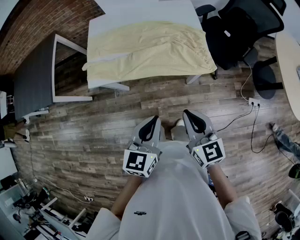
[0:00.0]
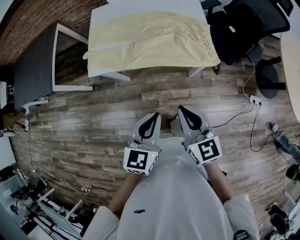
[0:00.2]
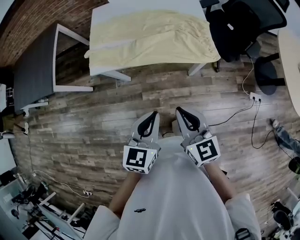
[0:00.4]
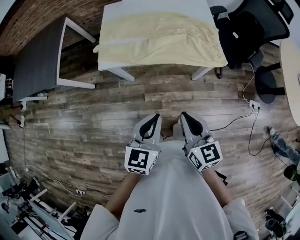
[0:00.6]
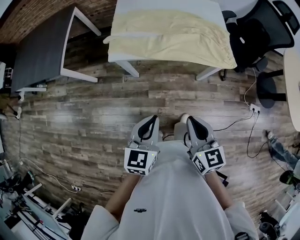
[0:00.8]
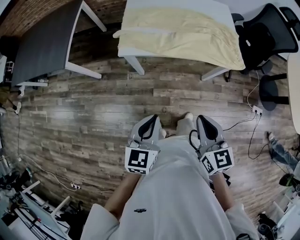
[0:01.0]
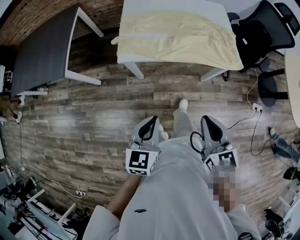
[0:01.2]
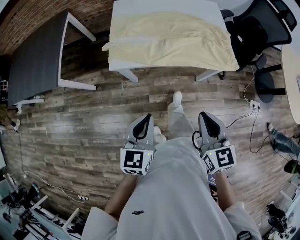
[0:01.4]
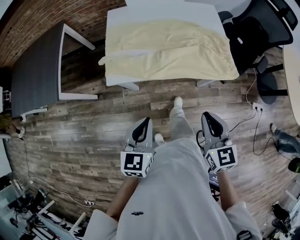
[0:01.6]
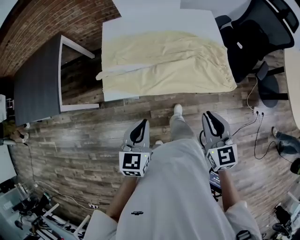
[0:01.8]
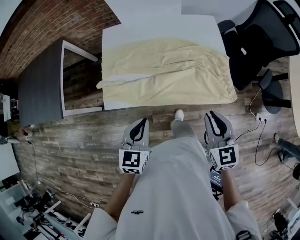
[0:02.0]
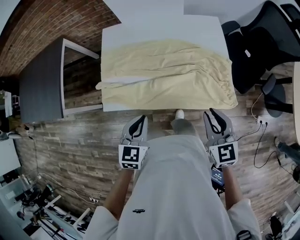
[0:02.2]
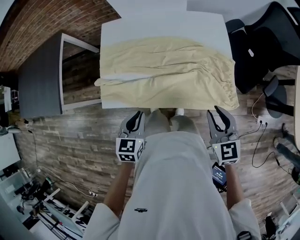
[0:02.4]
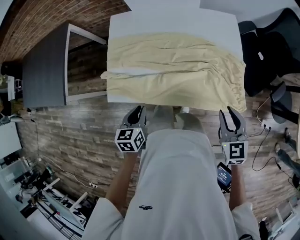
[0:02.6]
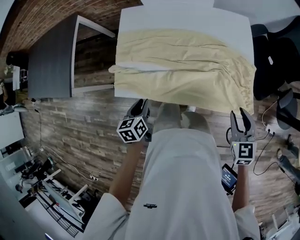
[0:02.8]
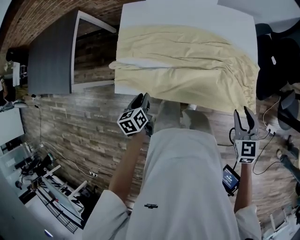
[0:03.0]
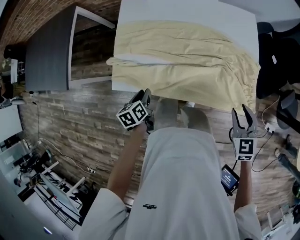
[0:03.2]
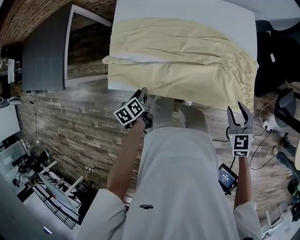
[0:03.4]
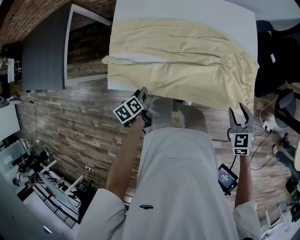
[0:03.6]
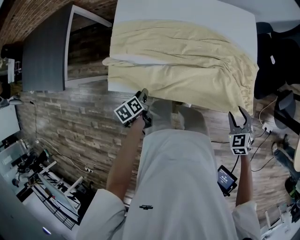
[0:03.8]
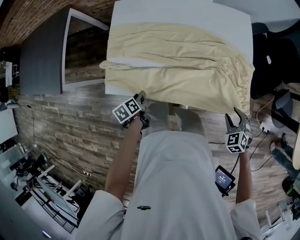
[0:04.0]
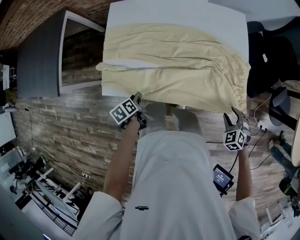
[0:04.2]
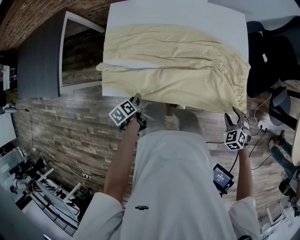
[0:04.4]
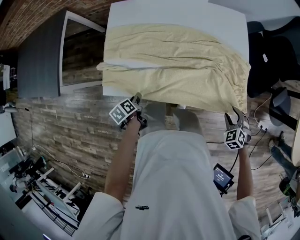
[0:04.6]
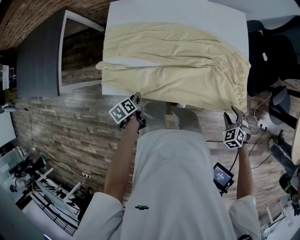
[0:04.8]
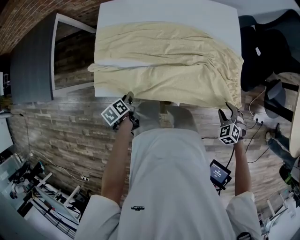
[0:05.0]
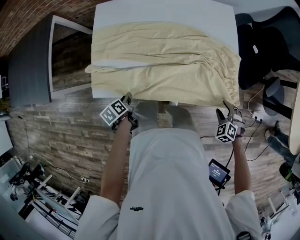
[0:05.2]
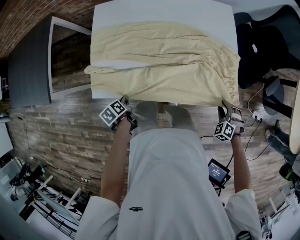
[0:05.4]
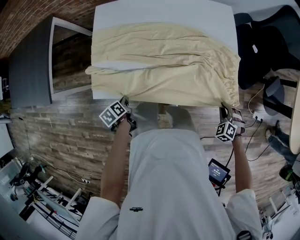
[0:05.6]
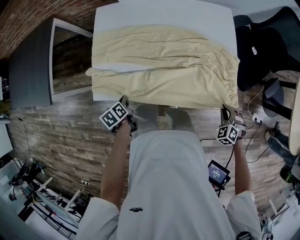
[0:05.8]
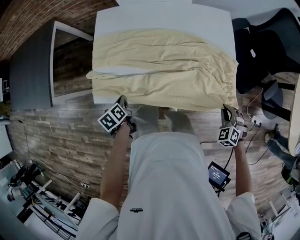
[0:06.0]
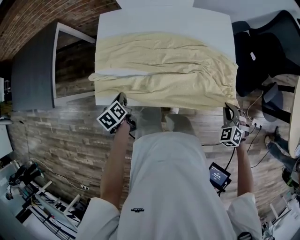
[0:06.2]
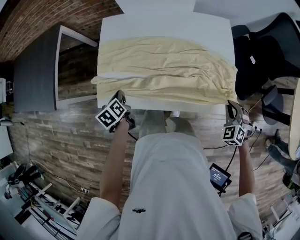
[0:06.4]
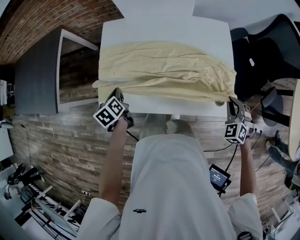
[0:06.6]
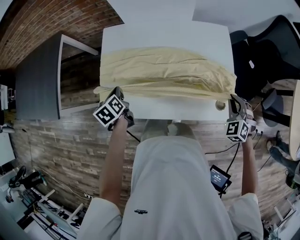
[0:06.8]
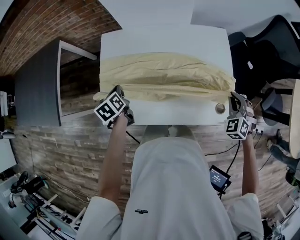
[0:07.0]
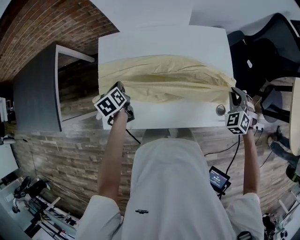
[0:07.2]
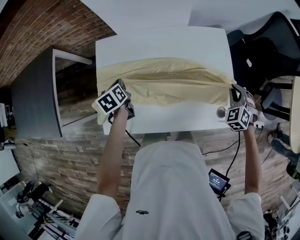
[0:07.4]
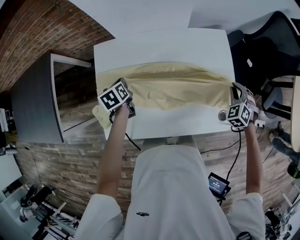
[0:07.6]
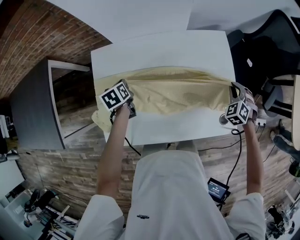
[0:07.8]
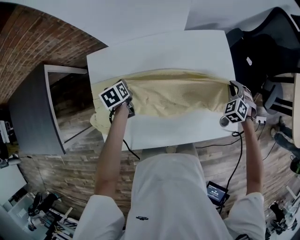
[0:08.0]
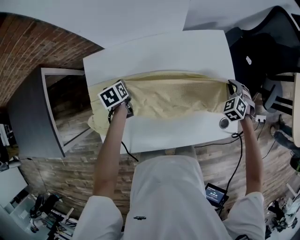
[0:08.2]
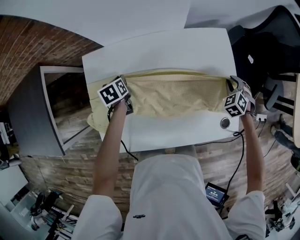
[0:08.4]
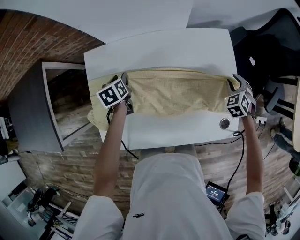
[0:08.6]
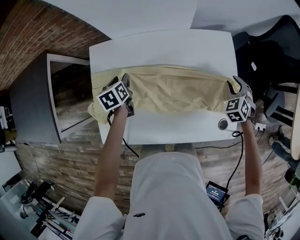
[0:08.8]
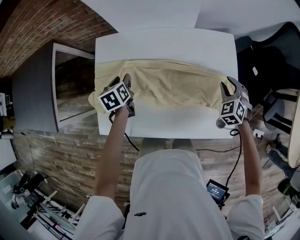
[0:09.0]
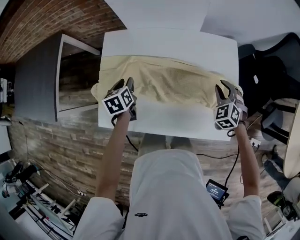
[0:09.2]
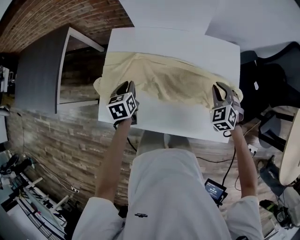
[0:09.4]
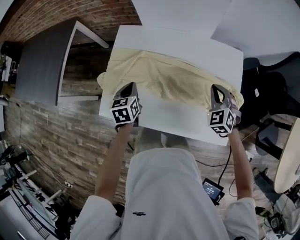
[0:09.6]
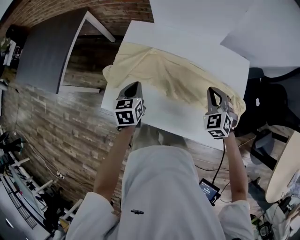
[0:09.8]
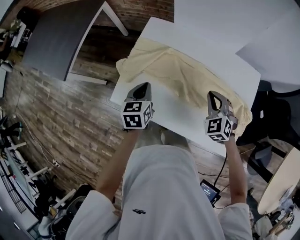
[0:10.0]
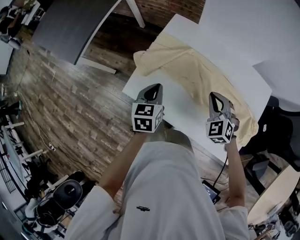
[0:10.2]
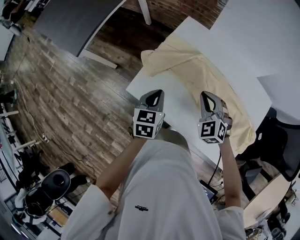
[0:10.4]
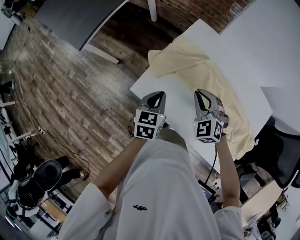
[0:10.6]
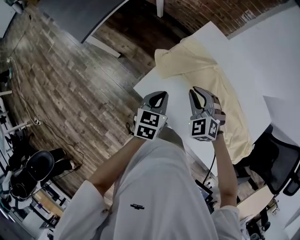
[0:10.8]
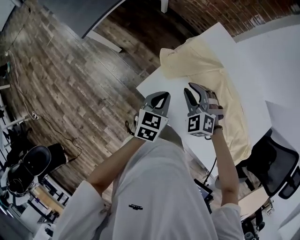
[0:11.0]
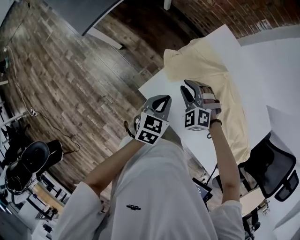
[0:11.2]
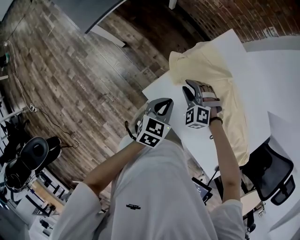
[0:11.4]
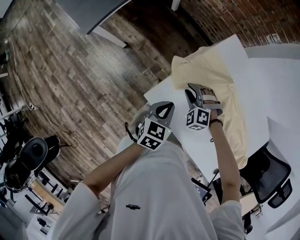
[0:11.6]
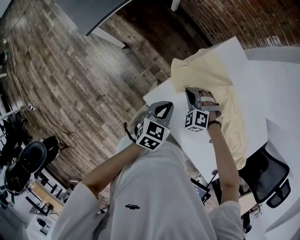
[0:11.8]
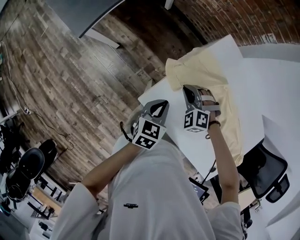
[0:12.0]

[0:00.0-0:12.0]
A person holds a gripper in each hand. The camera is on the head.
0:00.0 to 0:01.6: The right gripper is displaced to the left by roughly 10 cm; the left gripper moves to the left, roughly 20 cm.
0:01.6 to 0:03.0: The left gripper travels forward and downward by about 25 cm, swivels some 40 degrees, and opens its fingers, while the right gripper is displaced forward, to the right and downward by roughly 30 cm, and opens its fingers.
0:03.0 to 0:04.4: The left gripper is displaced downward by about 10 cm, and changes its angle by roughly 30 degrees. The right gripper travels downward by roughly 15 cm, and turns by approximately 40 degrees.
0:04.4 to 0:06.0: The left gripper changes place by some 5 cm, and closes up, while the right gripper closes.
0:06.0 to 0:07.6: The two grippers go about 25 cm forward.
0:07.6 to 0:09.0: The right gripper reaches about 10 cm downward, then returns, and opens up. Meanwhile the left gripper moves approximately 10 cm forward and comes back, and opens.
0:09.0 to 0:10.4: The right gripper ends up about 40 cm from where it was, turns by about 40 degrees, and closes its fingers; the left gripper shifts by about 20 cm, and closes its fingers.
0:10.4 to 0:12.0: The left gripper goes some 10 cm to the left, downward and forward, while the right gripper travels to the left, downward and forward by about 25 cm, turns by about 40 degrees, and opens, then closes again.

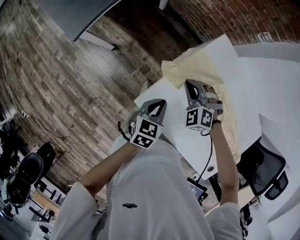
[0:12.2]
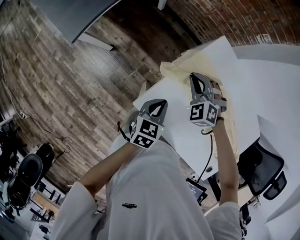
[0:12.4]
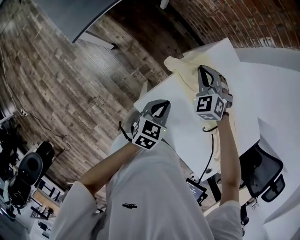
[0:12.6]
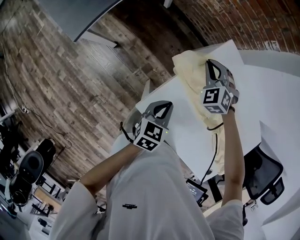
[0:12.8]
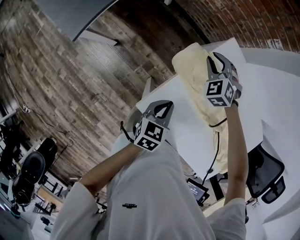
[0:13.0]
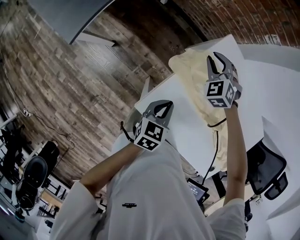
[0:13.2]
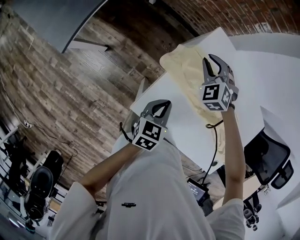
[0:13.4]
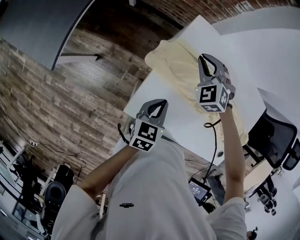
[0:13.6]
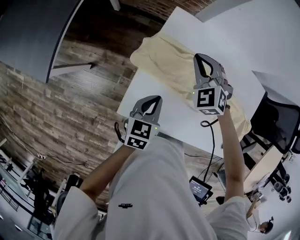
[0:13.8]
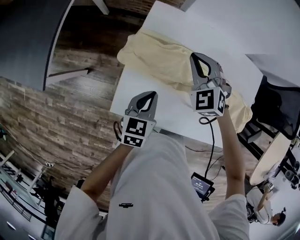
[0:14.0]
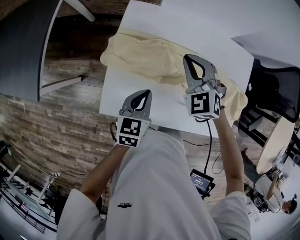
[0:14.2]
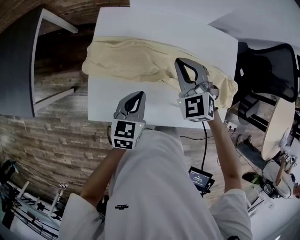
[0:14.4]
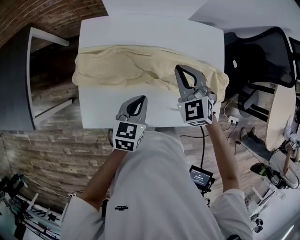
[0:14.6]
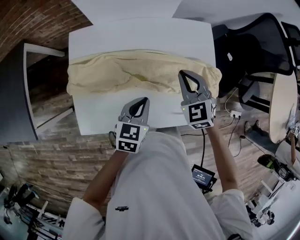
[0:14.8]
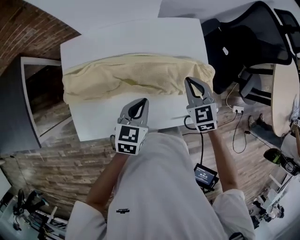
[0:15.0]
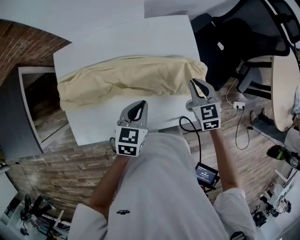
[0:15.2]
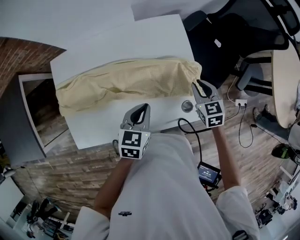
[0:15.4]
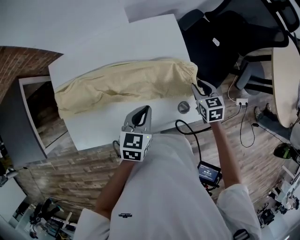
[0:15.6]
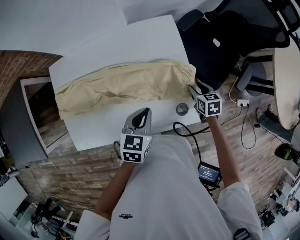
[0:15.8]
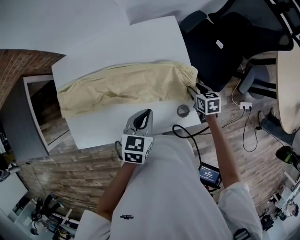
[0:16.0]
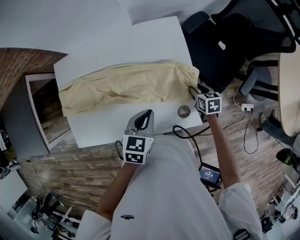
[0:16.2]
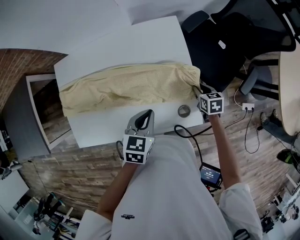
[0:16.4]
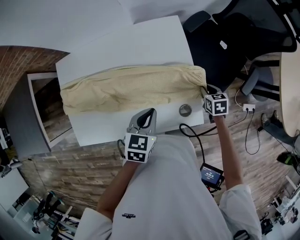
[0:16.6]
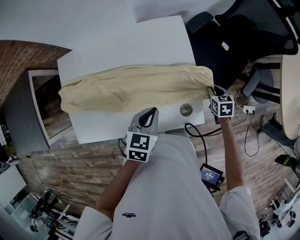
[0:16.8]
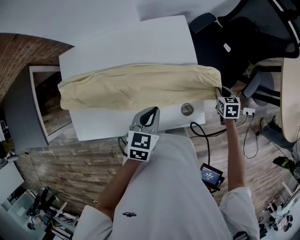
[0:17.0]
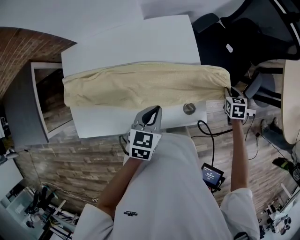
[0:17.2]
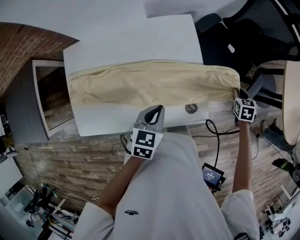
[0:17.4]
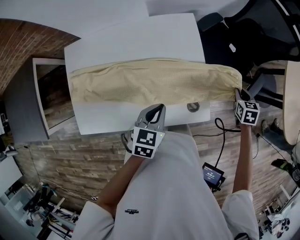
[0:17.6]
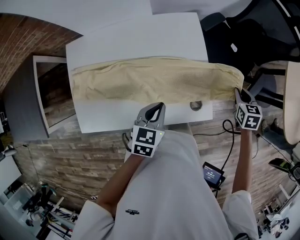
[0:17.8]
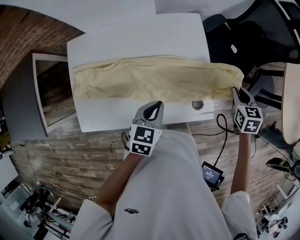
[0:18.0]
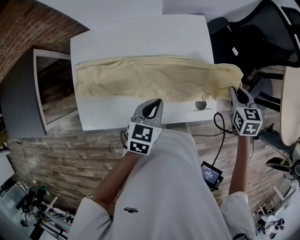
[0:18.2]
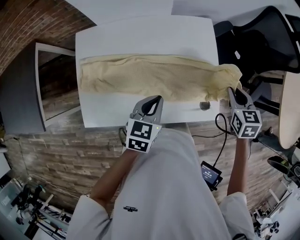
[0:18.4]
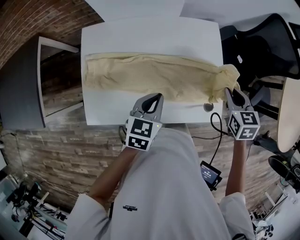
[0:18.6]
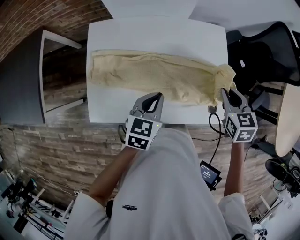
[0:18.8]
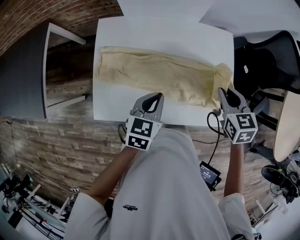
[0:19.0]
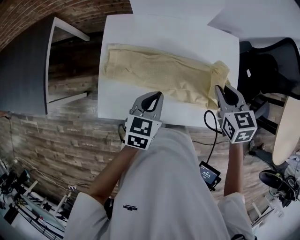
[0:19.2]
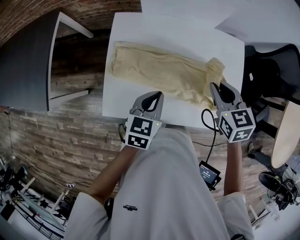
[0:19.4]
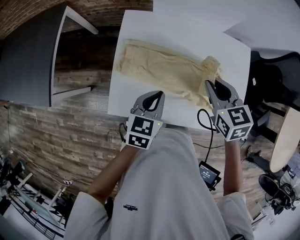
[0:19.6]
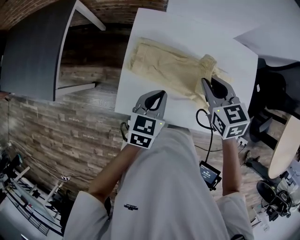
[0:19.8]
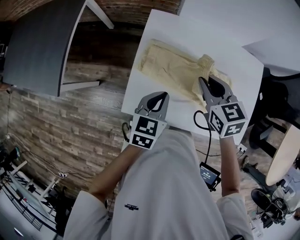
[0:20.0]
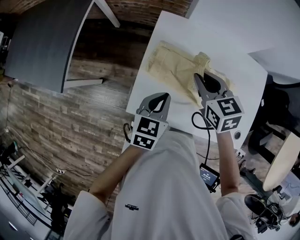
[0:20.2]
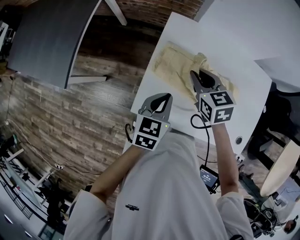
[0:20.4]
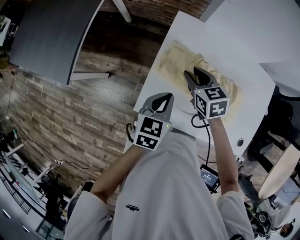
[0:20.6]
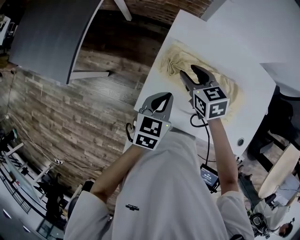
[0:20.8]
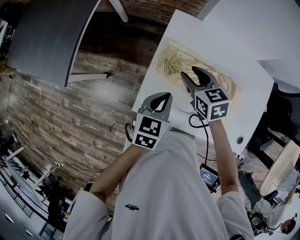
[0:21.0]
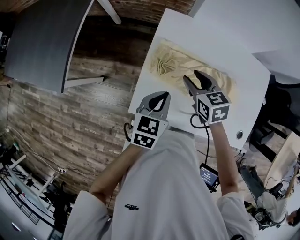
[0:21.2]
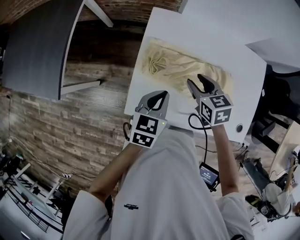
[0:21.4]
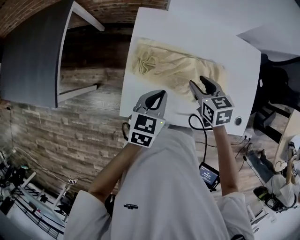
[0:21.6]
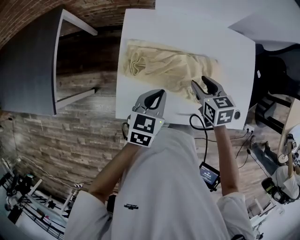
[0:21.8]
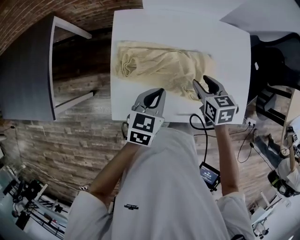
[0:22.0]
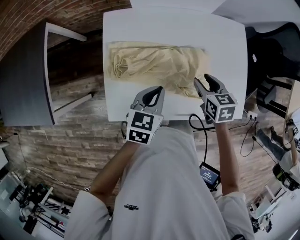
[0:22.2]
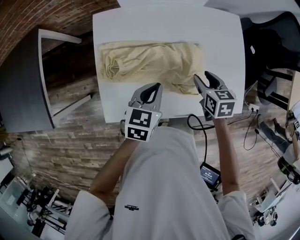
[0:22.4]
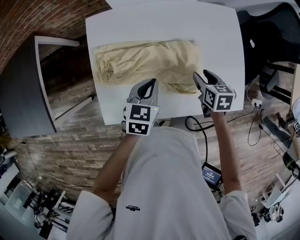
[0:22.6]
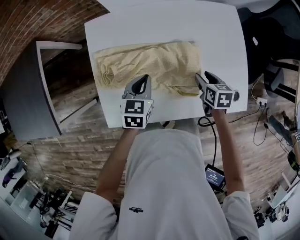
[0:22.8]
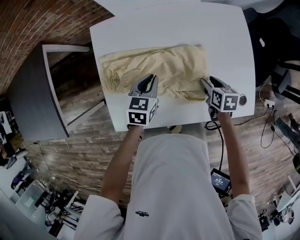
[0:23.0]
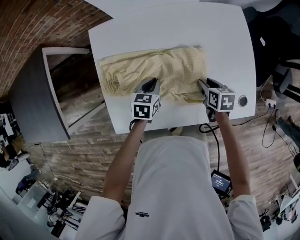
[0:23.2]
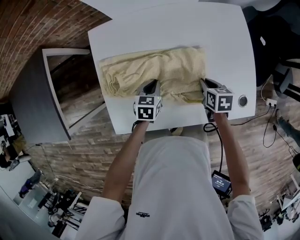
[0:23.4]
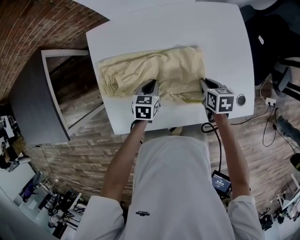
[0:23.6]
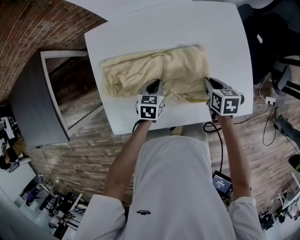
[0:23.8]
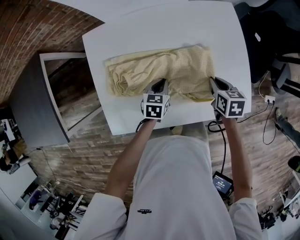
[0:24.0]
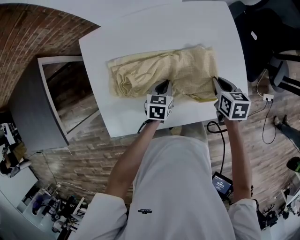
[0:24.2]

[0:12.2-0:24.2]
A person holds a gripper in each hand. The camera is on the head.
0:12.2 to 0:13.8: The right gripper is displaced to the right, forward and upward by about 20 cm, changes its angle by approximately 30 degrees, and opens, then closes once more; the left gripper heads to the right, covering roughly 5 cm.
0:13.8 to 0:15.2: The right gripper ends up roughly 60 cm from where it was, and rotates around the line of its fingers by roughly 50 degrees, clockwise from behind. The left gripper moves approximately 35 cm, and changes its angle by some 30 degrees.
0:15.2 to 0:16.6: The right gripper is displaced to the right and downward by about 20 cm, swivels about 30 degrees, and opens, then closes once more, while the left gripper moves to the right, about 10 cm.
0:16.6 to 0:18.2: The left gripper goes approximately 5 cm to the left, while the right gripper travels upward by about 20 cm.
0:18.2 to 0:19.8: The left gripper ends up approximately 30 cm from where it was. The right gripper moves roughly 50 cm, and changes its angle by approximately 30 degrees.
0:19.8 to 0:21.2: The left gripper moves to the left, approximately 10 cm. The right gripper travels to the left and downward by approximately 15 cm, and opens.
0:21.2 to 0:22.6: The right gripper is displaced to the right by approximately 30 cm, and turns by roughly 40 degrees. The left gripper is displaced to the right by about 15 cm.
0:22.6 to 0:24.2: The right gripper goes approximately 10 cm to the right, and closes up. The left gripper shifts roughly 15 cm downward and to the right.
